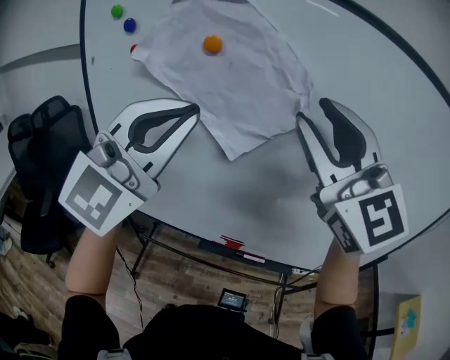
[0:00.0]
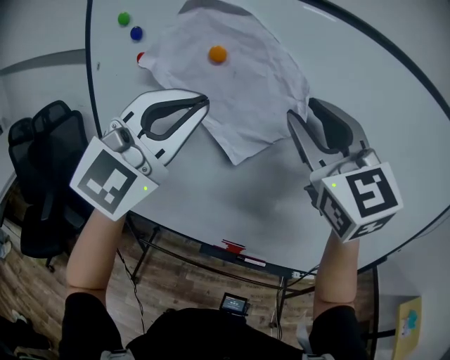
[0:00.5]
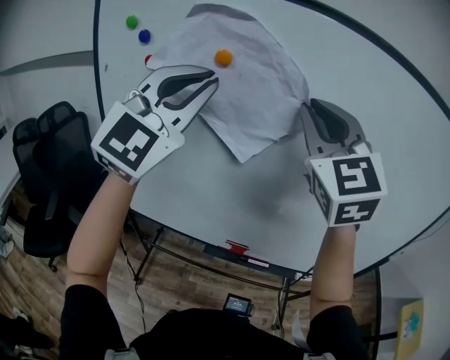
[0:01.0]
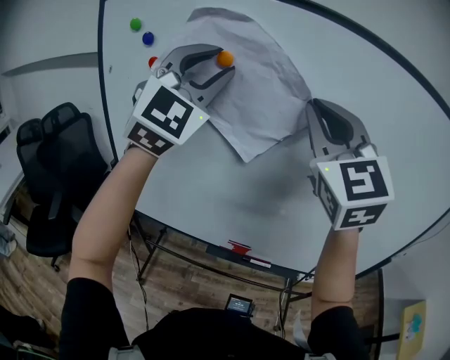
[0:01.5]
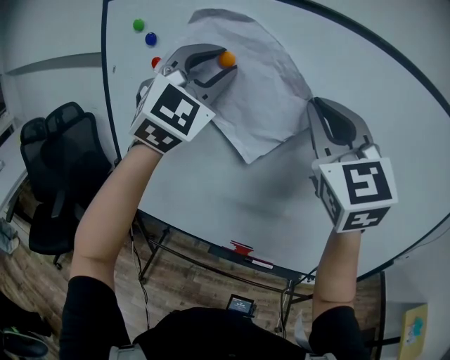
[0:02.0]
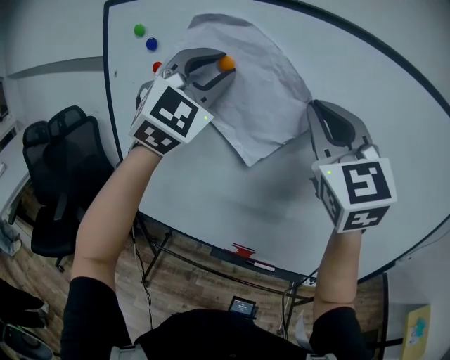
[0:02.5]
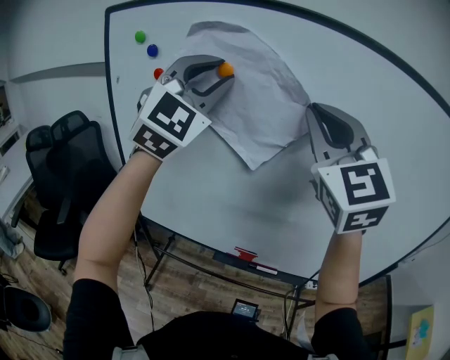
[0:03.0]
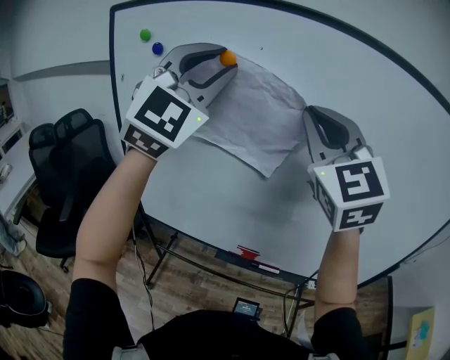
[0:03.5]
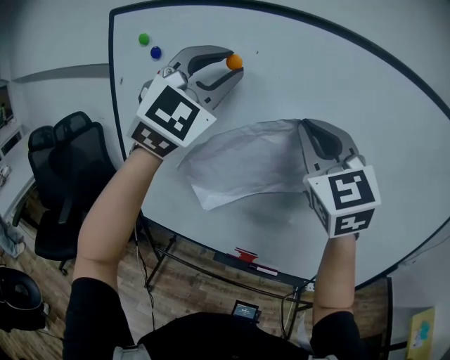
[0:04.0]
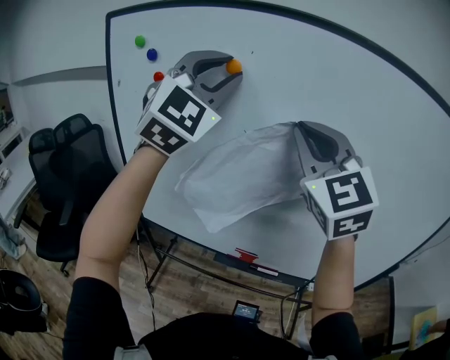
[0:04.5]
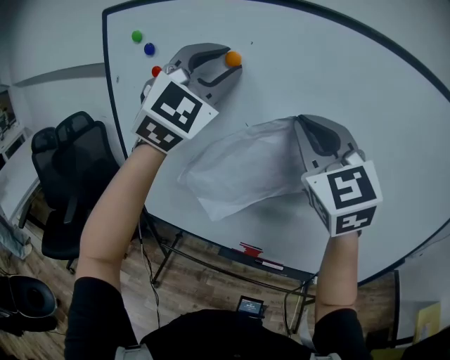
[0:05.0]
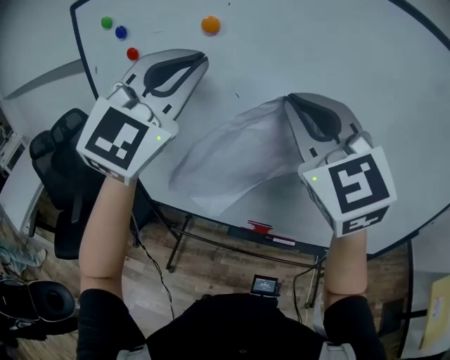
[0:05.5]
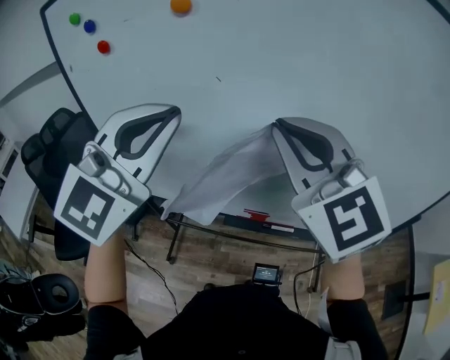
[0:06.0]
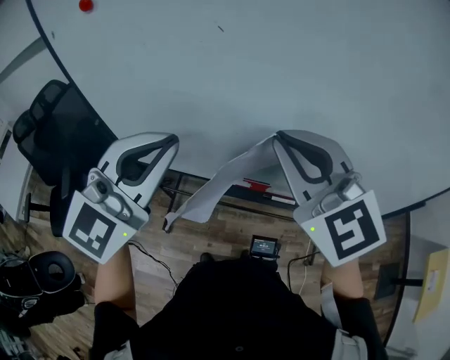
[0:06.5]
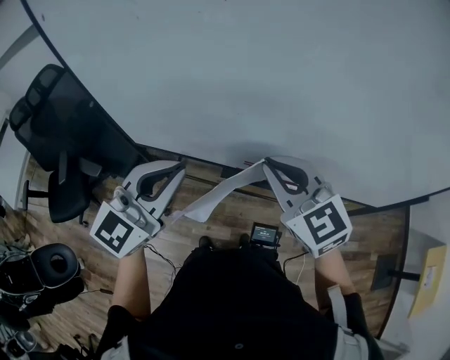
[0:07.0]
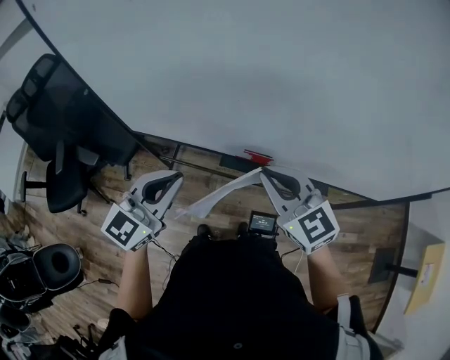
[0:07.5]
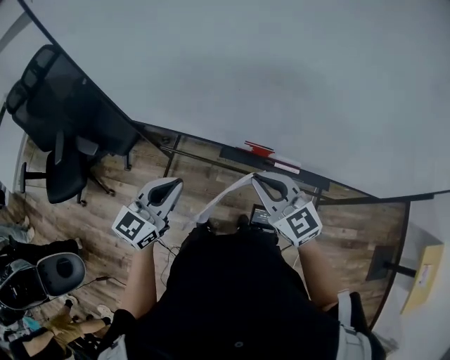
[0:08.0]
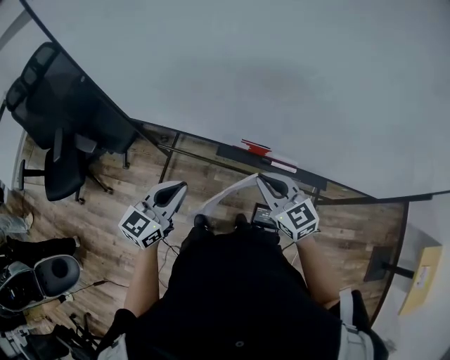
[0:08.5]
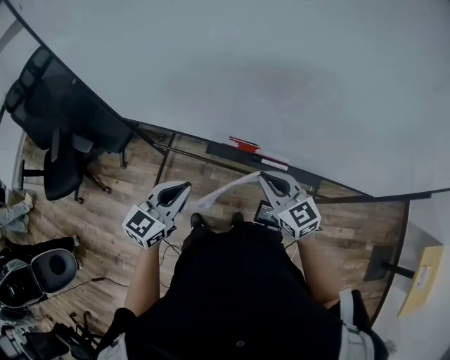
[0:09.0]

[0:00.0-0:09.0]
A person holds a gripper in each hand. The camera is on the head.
0:00.0 to 0:02.0: The right gripper closes its fingers. Meanwhile the left gripper is displaced forward and upward by roughly 10 cm, swivels roughly 20 degrees, and opens.
0:02.0 to 0:04.5: The grippers stay close to where they were, moving slightly.
0:04.5 to 0:07.0: The grippers both shift downward by roughly 35 cm. The right gripper changes its angle by roughly 30 degrees; the left gripper rotates around the line of its fingers by some 40 degrees, counterclockwise from behind, and closes.
0:07.0 to 0:09.0: The left gripper moves downward, about 20 cm, and turns by about 30 degrees. The right gripper shifts about 25 cm downward and to the right.

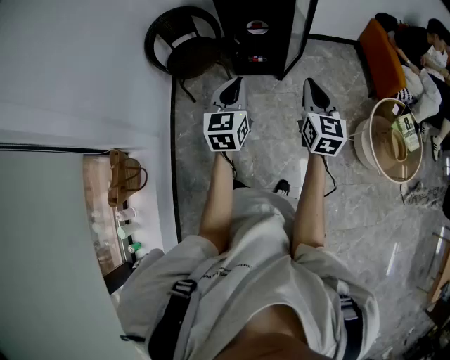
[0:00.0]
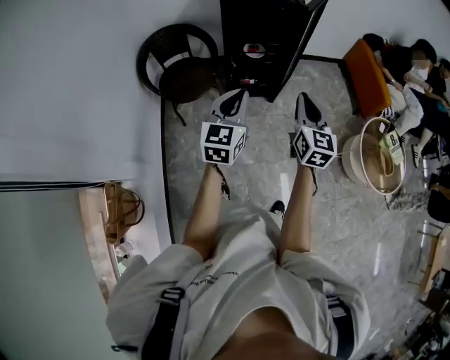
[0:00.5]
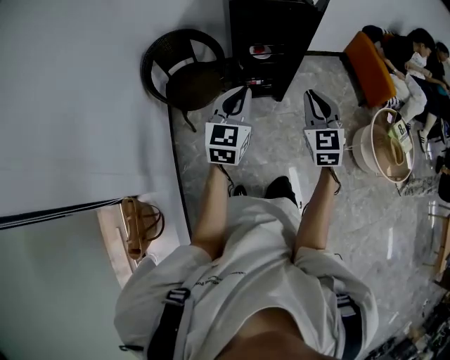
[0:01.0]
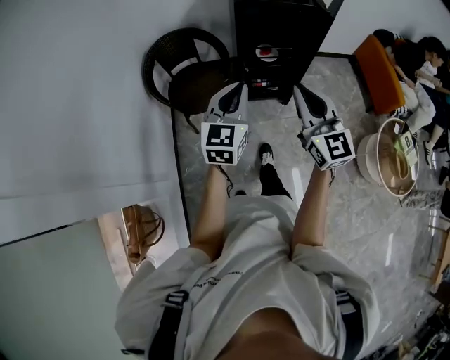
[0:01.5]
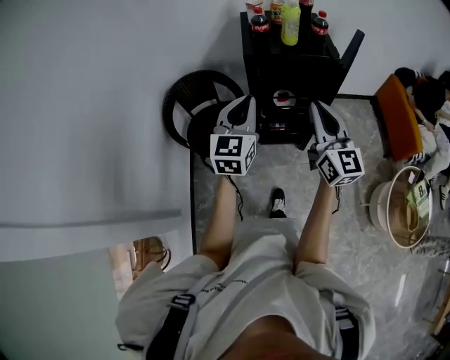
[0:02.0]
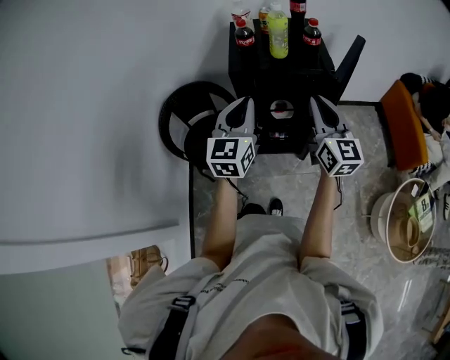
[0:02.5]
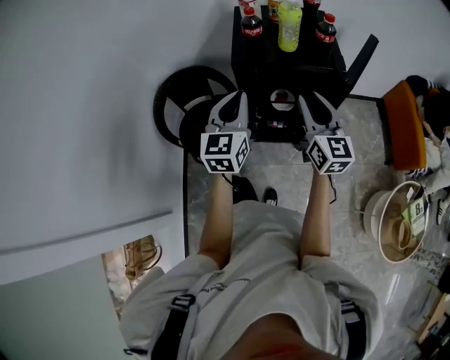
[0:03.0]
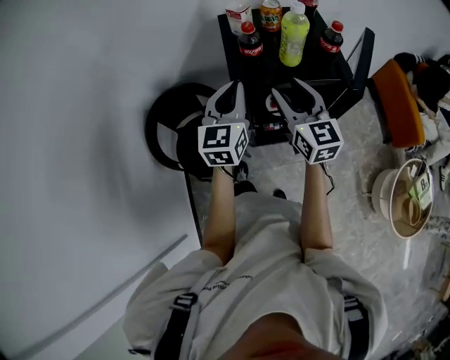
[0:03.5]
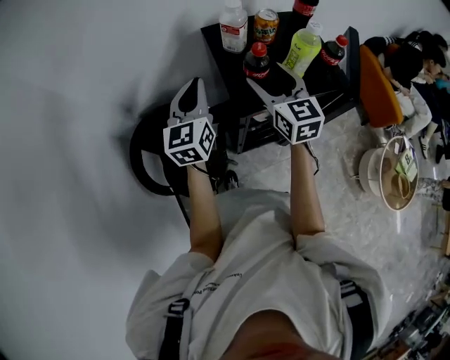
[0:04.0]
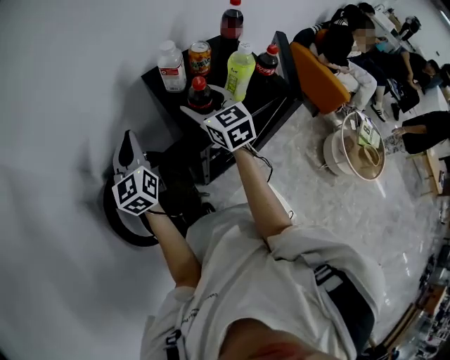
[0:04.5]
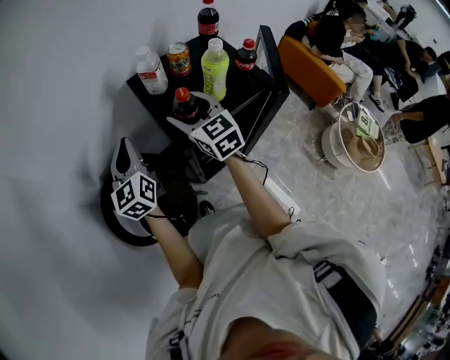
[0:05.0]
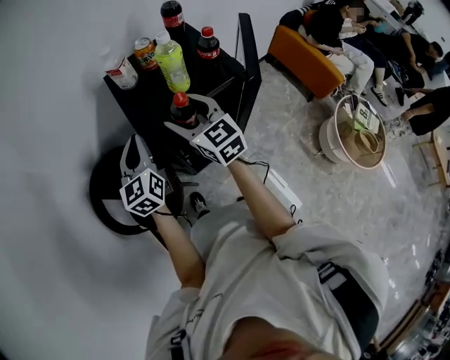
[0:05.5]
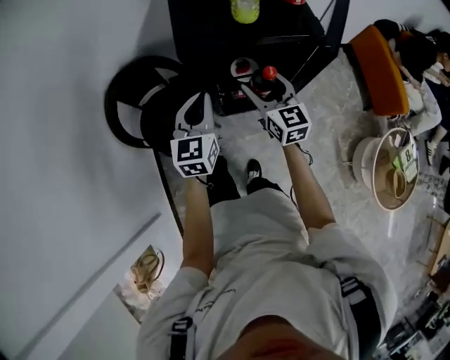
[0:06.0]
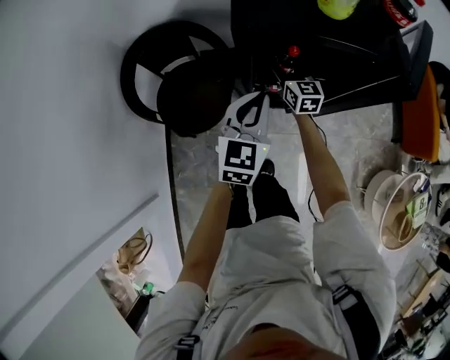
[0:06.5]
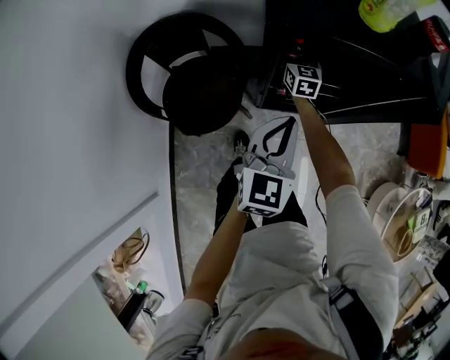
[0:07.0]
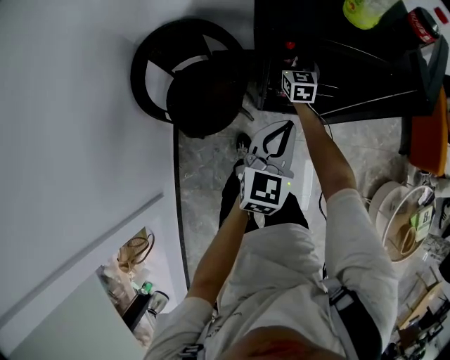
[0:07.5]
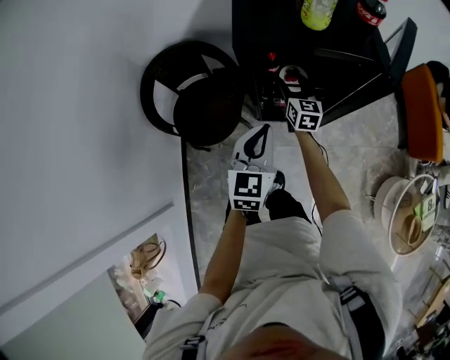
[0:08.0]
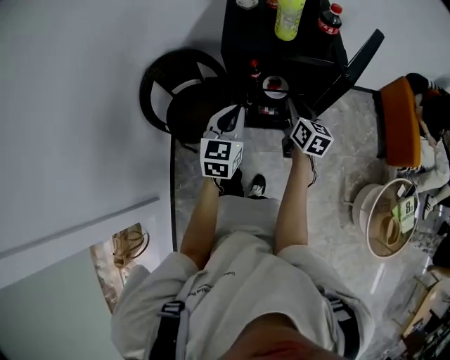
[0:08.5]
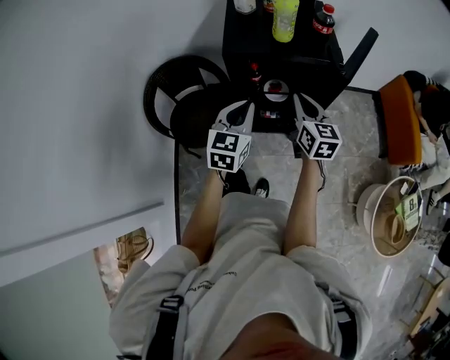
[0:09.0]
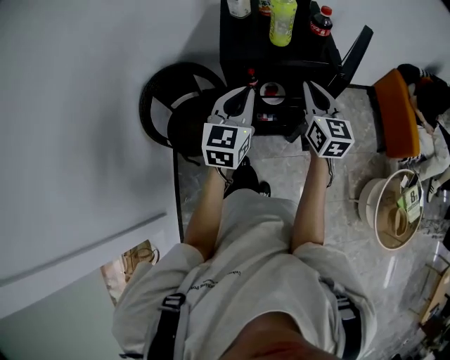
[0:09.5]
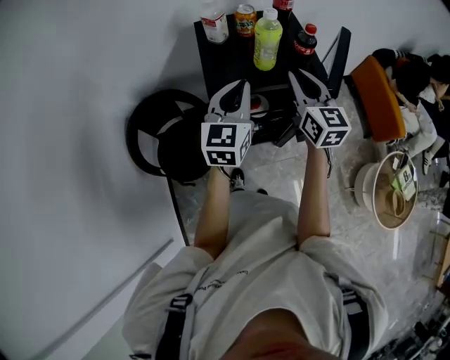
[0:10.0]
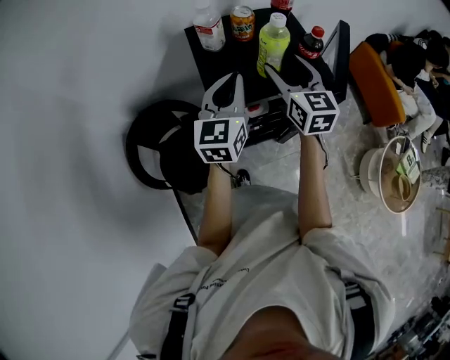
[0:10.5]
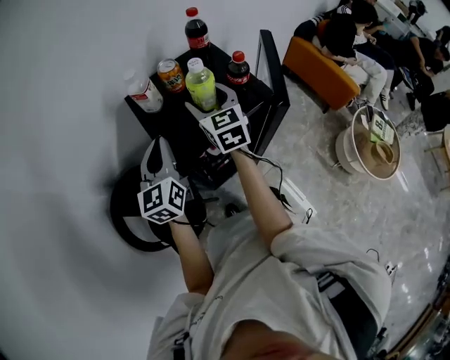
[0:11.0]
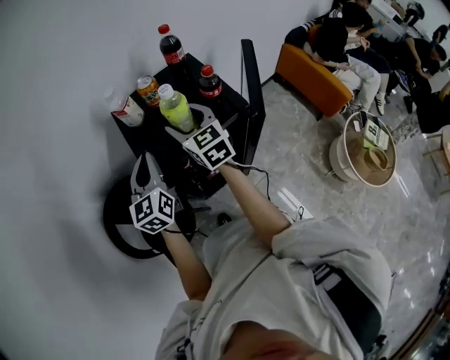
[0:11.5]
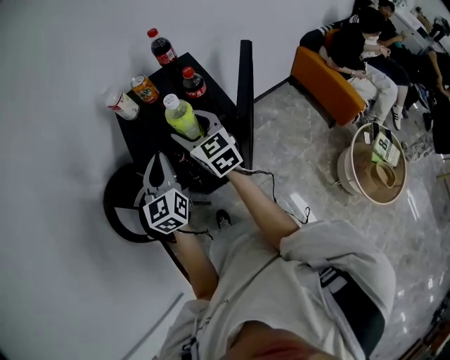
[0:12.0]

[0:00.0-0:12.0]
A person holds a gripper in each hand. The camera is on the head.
0:00.0 to 0:02.0: Both grippers travel together forward and to the left, about 35 cm. The right gripper swivels some 20 degrees.
0:02.0 to 0:04.0: The grippers both shift forward by roughly 35 cm. The right gripper rotates roughly 20 degrees, and opens.
0:04.0 to 0:06.0: The left gripper moves backward, downward and to the right, some 25 cm; the right gripper travels downward, backward and to the right by about 25 cm.
0:06.0 to 0:08.0: The left gripper is displaced backward and downward by about 10 cm; the right gripper shifts roughly 20 cm downward and forward.
0:08.0 to 0:10.0: The left gripper shifts some 25 cm upward and forward, while the right gripper travels upward by approximately 35 cm, and closes up.
0:10.0 to 0:12.0: The left gripper reaches approximately 10 cm to the left, then returns; the right gripper moves roughly 10 cm forward and comes back, and opens.

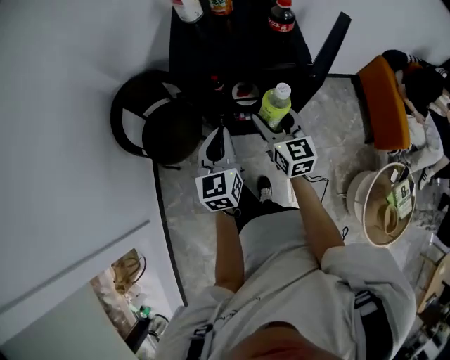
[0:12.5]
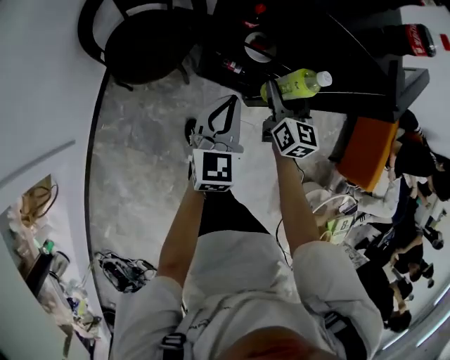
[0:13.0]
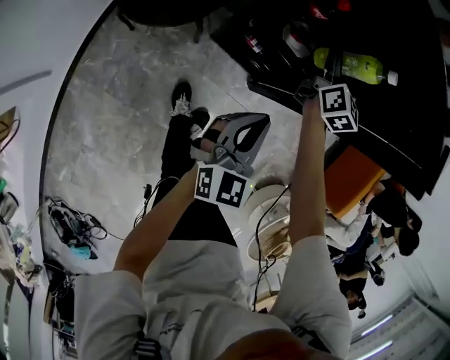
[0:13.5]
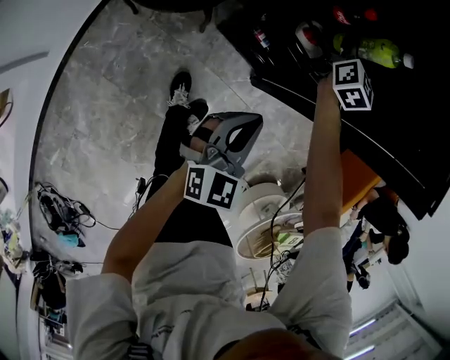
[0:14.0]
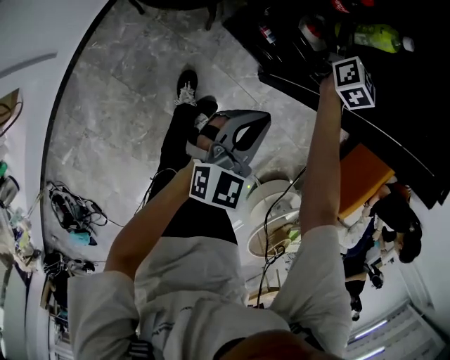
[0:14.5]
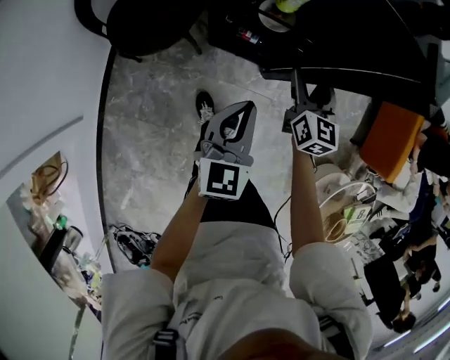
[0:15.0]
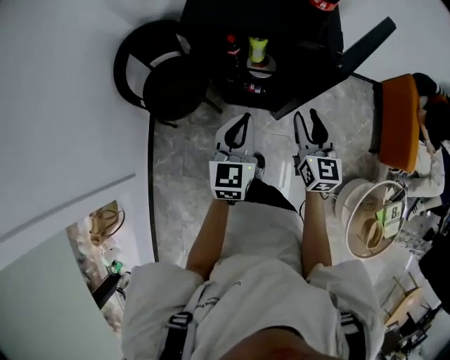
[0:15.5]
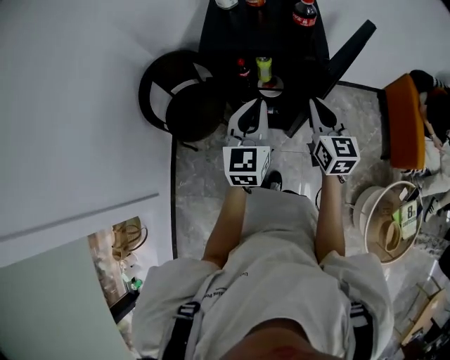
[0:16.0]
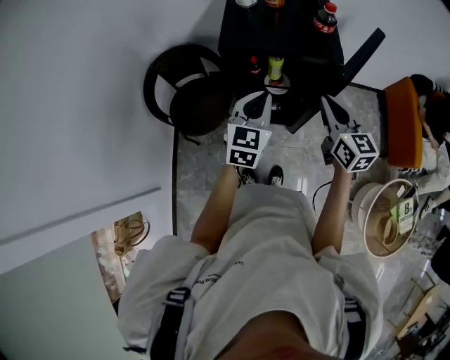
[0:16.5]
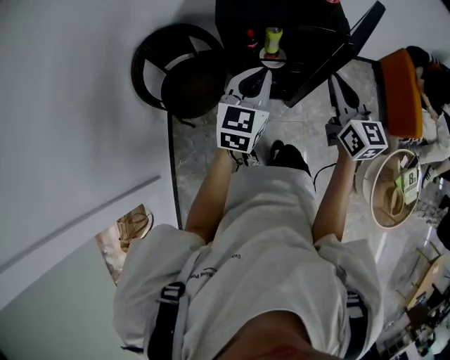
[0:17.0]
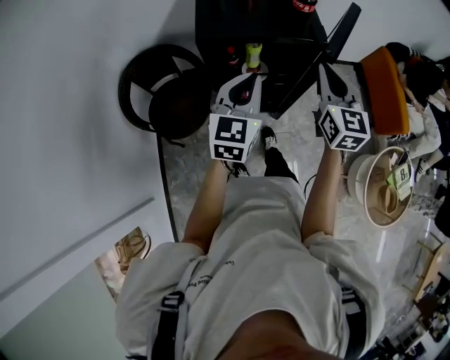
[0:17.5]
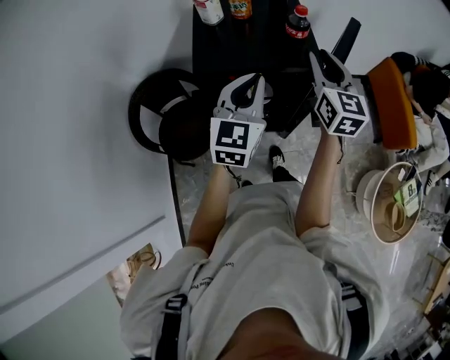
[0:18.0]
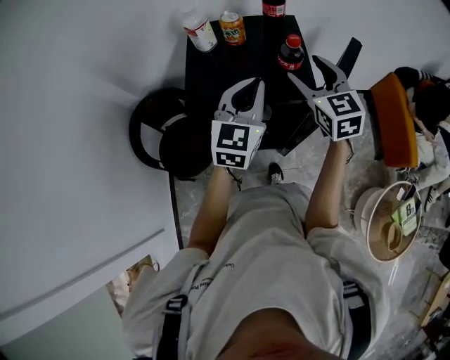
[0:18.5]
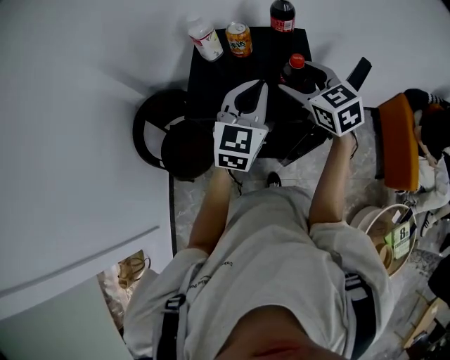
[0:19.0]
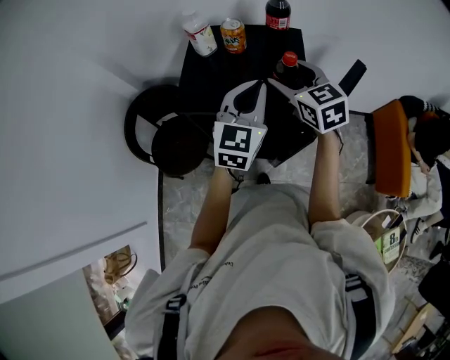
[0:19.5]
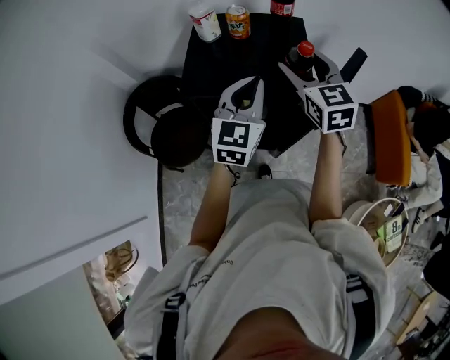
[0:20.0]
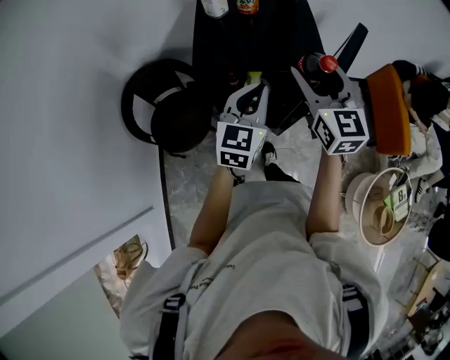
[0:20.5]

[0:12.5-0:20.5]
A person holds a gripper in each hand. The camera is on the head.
0:12.5 to 0:14.5: The left gripper heads downward, covering some 25 cm. Meanwhile the right gripper is displaced downward and forward by approximately 35 cm.
0:14.5 to 0:16.5: The left gripper goes some 30 cm upward, while the right gripper goes roughly 40 cm upward and backward, and closes.
0:16.5 to 0:18.5: The left gripper is displaced forward and upward by about 20 cm. The right gripper heads forward, covering some 20 cm, swivels approximately 20 degrees, and opens its fingers.
0:18.5 to 0:20.5: The left gripper is displaced backward and downward by about 10 cm; the right gripper is displaced backward and to the left by approximately 10 cm.
